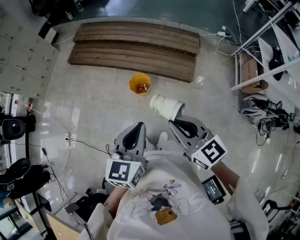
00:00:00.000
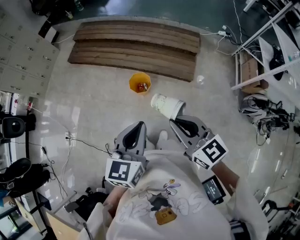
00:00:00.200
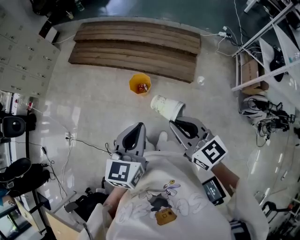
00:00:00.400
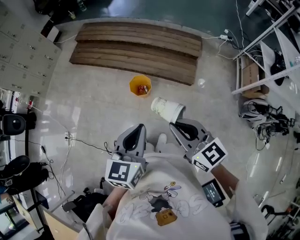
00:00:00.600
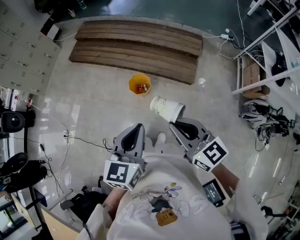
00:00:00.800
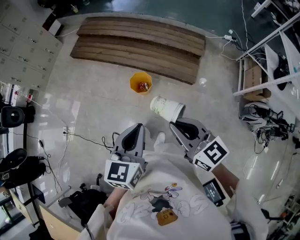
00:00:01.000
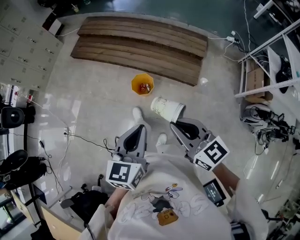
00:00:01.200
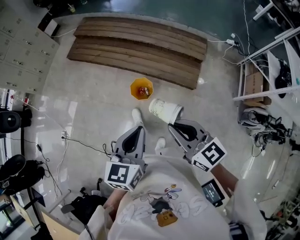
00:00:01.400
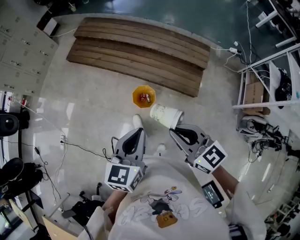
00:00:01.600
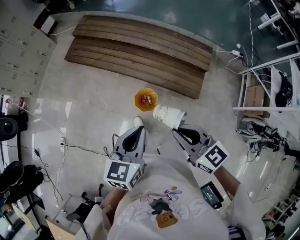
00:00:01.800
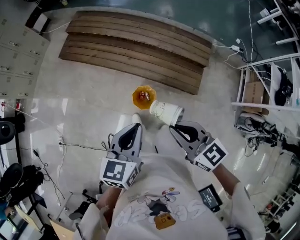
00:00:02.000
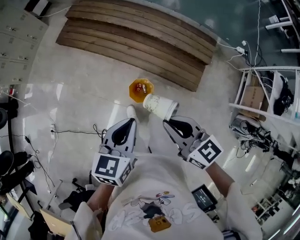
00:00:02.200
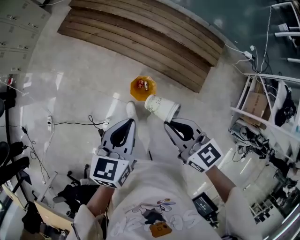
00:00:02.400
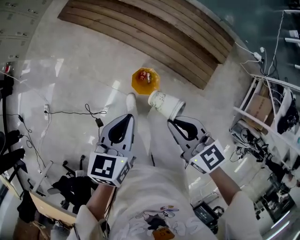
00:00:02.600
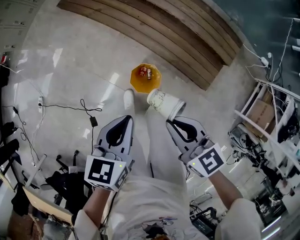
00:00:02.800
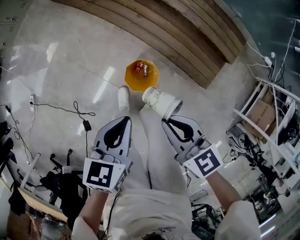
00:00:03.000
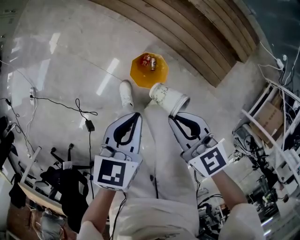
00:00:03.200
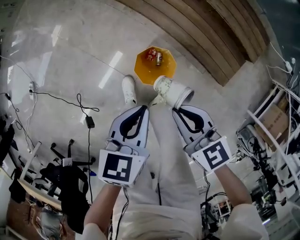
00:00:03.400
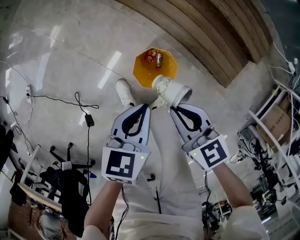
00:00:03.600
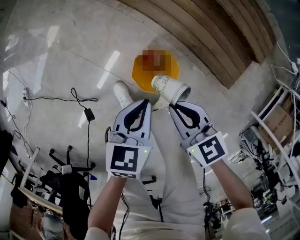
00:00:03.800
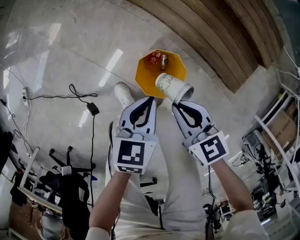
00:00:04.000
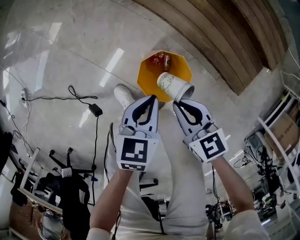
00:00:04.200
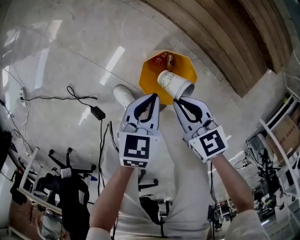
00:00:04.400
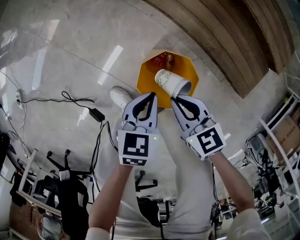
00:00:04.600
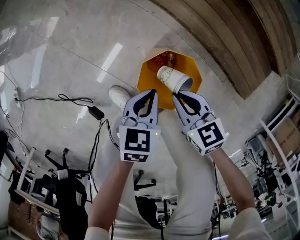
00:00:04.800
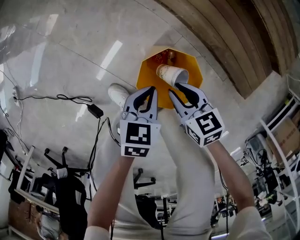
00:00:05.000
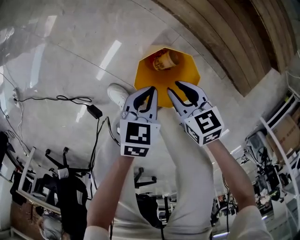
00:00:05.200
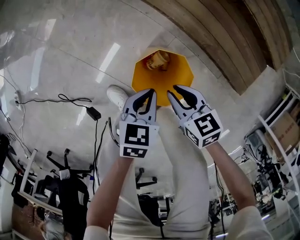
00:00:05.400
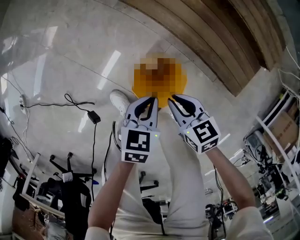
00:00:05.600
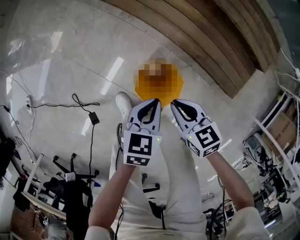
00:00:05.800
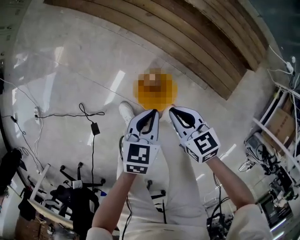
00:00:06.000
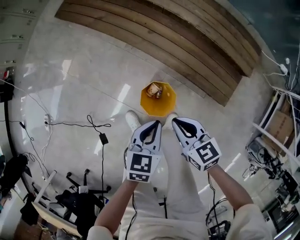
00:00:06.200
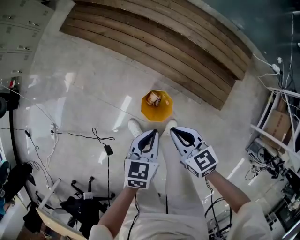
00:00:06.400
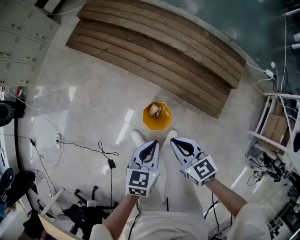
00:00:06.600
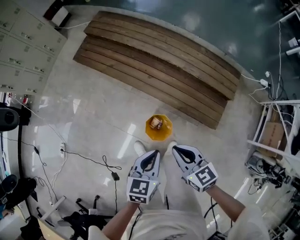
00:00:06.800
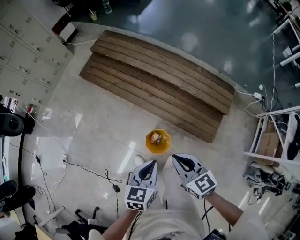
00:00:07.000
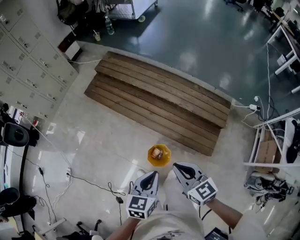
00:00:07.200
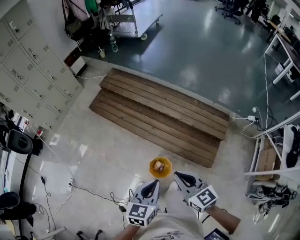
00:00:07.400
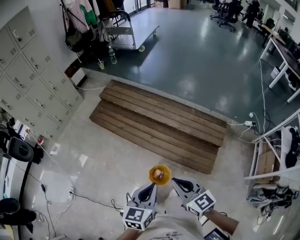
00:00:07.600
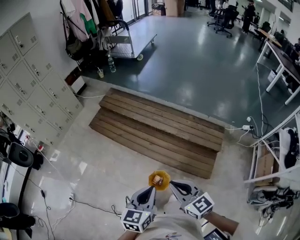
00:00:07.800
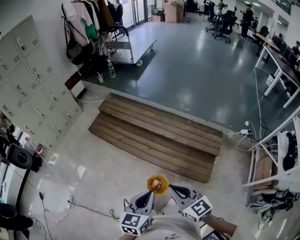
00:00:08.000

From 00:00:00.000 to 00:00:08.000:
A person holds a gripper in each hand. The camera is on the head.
From 00:00:00.000 to 00:00:01.600: The two grippers go some 20 cm forward.
From 00:00:01.600 to 00:00:03.200: Both grippers move downward and forward, approximately 40 cm. The right gripper rotates roughly 20 degrees. Meanwhile the left gripper changes its angle by about 30 degrees.
From 00:00:03.200 to 00:00:04.800: Both grippers move downward, roughly 40 cm.
From 00:00:04.800 to 00:00:06.400: The grippers both shift upward by about 40 cm. The right gripper opens, then closes again.
From 00:00:06.400 to 00:00:08.000: Both grippers move upward, approximately 40 cm. The left gripper swivels roughly 20 degrees; the right gripper rotates approximately 30 degrees.

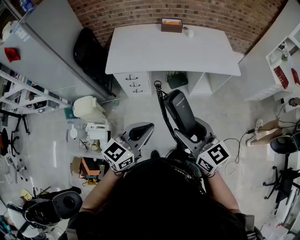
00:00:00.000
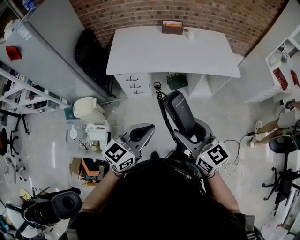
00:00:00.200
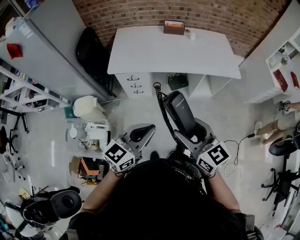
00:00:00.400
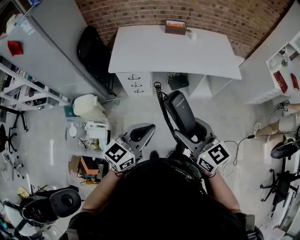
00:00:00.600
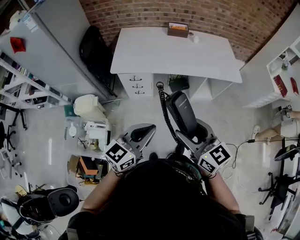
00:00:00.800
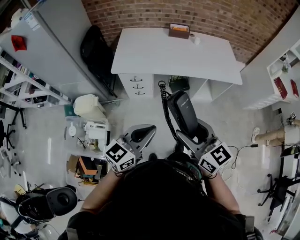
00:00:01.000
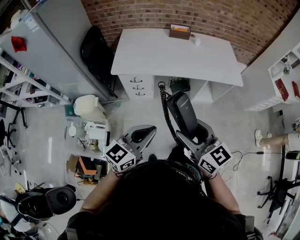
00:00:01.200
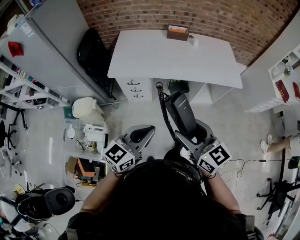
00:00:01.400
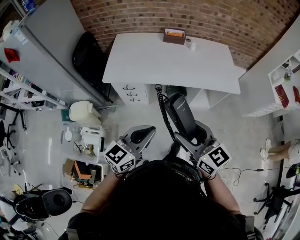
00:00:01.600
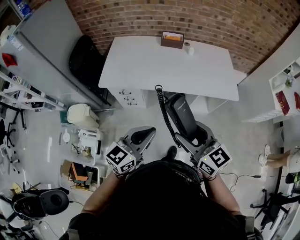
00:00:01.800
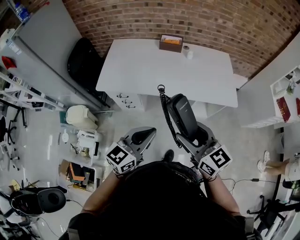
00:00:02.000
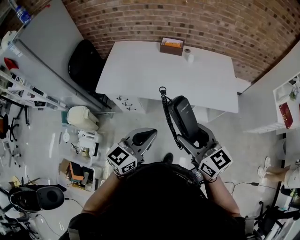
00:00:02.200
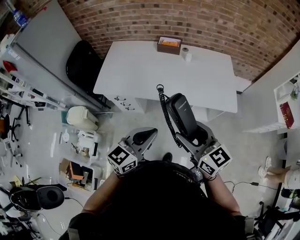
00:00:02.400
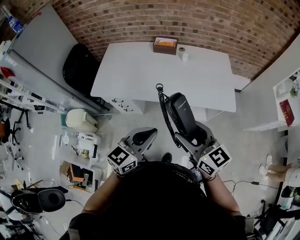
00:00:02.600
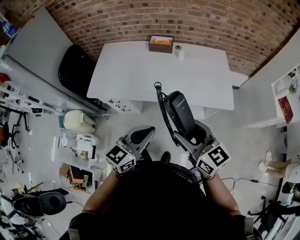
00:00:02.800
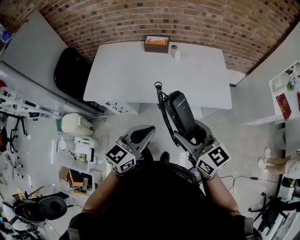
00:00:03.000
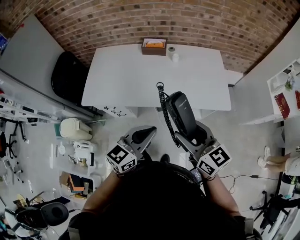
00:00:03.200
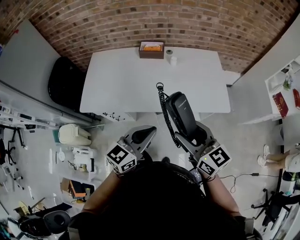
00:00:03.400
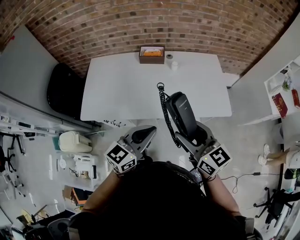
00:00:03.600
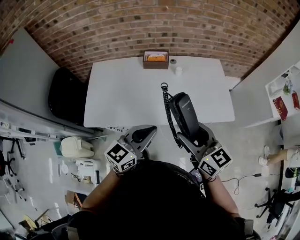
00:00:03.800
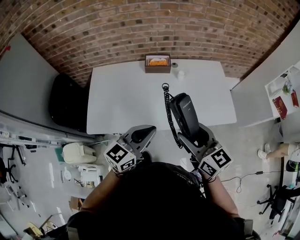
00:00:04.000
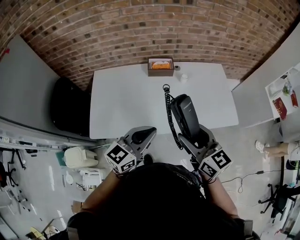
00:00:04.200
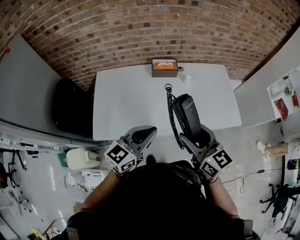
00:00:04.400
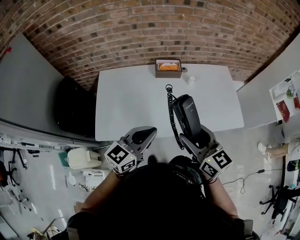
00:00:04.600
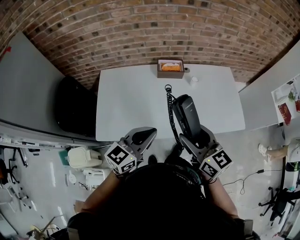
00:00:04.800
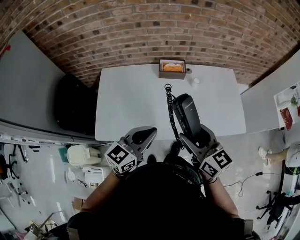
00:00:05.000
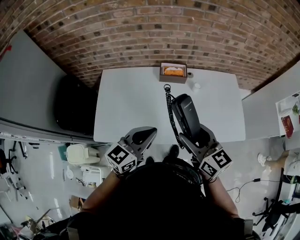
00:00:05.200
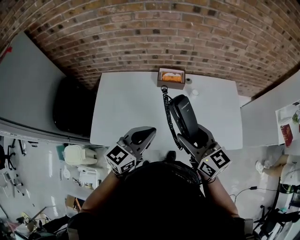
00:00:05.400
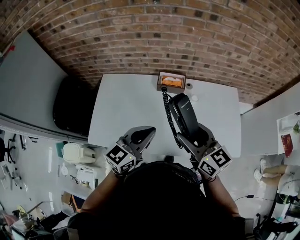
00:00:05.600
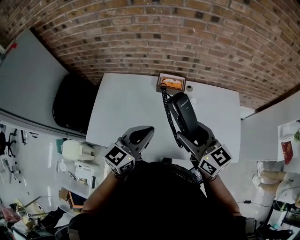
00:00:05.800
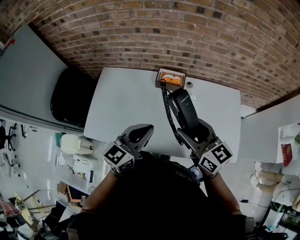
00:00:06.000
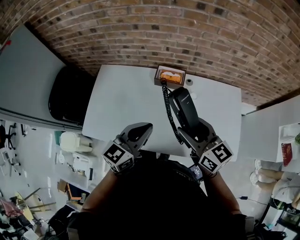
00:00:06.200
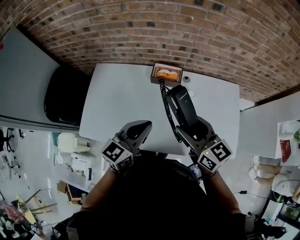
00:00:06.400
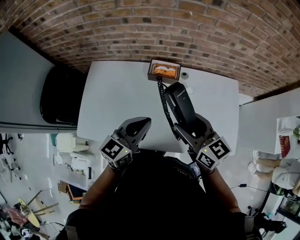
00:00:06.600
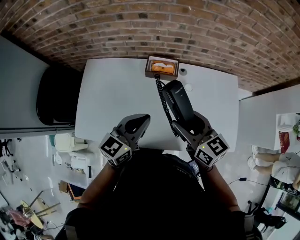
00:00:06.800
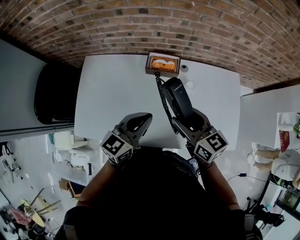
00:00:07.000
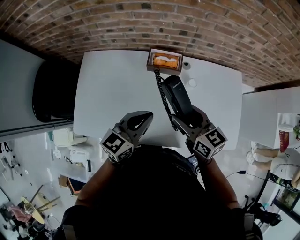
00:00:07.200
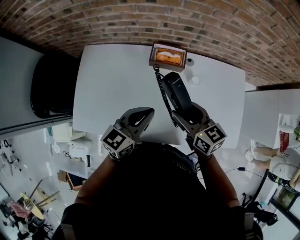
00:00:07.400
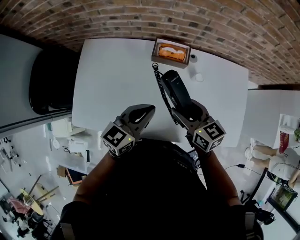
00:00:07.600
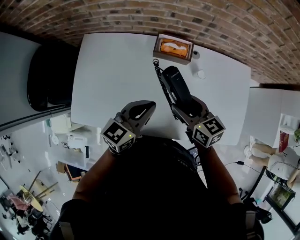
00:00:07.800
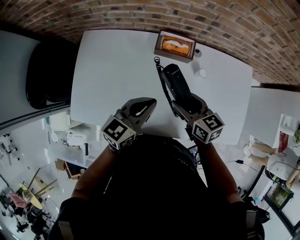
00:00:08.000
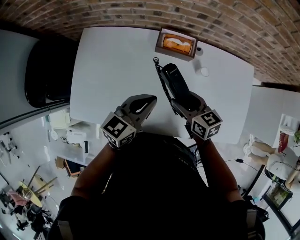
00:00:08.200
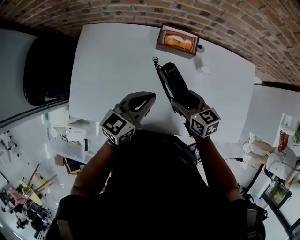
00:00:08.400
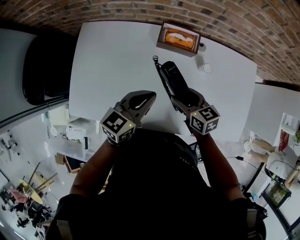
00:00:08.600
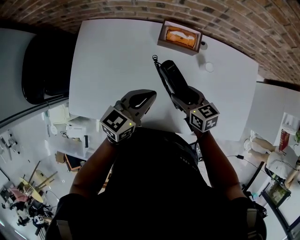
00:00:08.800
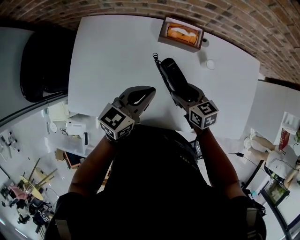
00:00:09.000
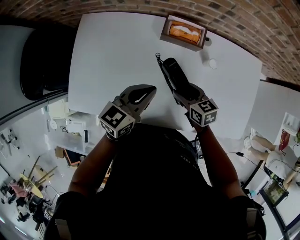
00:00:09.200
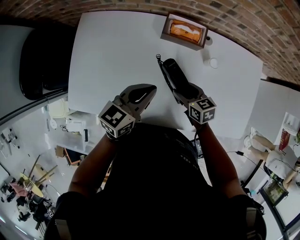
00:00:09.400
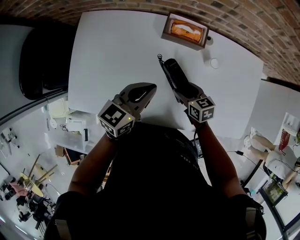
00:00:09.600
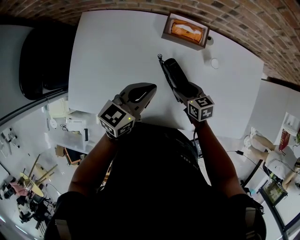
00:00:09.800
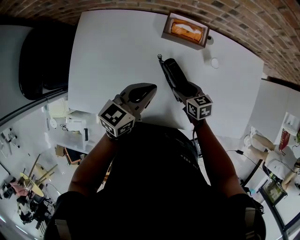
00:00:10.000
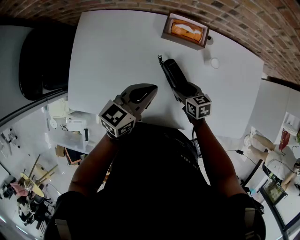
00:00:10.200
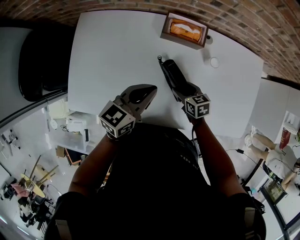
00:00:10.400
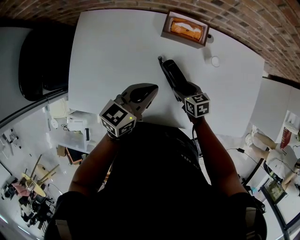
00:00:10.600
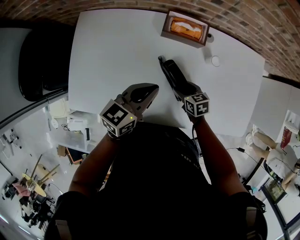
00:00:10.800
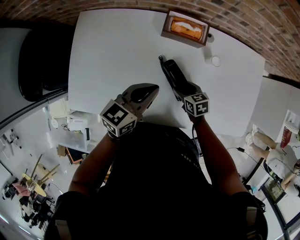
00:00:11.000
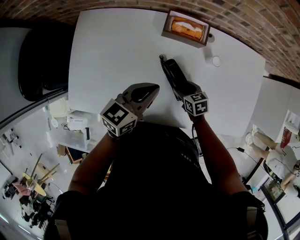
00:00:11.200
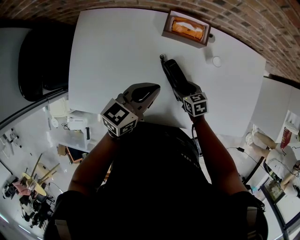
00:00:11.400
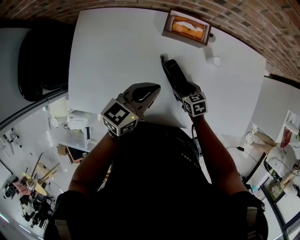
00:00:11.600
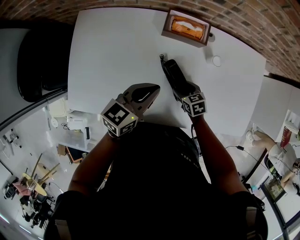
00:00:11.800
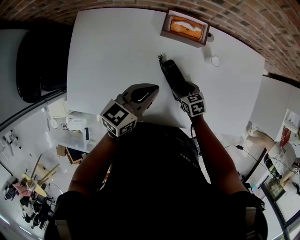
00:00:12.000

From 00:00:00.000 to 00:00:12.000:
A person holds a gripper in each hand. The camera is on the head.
From 00:00:00.000 to 00:00:01.600: Both grippers move forward, about 10 cm.
From 00:00:01.600 to 00:00:03.000: The two grippers go about 25 cm to the right and forward.
From 00:00:03.000 to 00:00:04.400: The left gripper heads forward and to the left, covering about 25 cm, while the right gripper is displaced to the left and forward by approximately 25 cm.
From 00:00:04.400 to 00:00:06.000: The right gripper shifts roughly 20 cm forward. Meanwhile the left gripper heads forward and to the right, covering some 15 cm.
From 00:00:06.000 to 00:00:07.600: The two grippers go some 15 cm downward and forward.
From 00:00:07.600 to 00:00:09.000: The left gripper goes approximately 5 cm downward; the right gripper shifts roughly 15 cm downward.
From 00:00:09.000 to 00:00:10.400: The right gripper is displaced downward by approximately 10 cm.
From 00:00:10.400 to 00:00:12.000: The grippers move only a little.

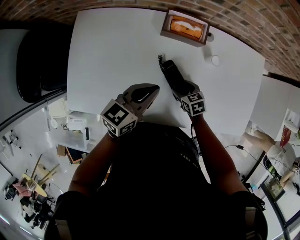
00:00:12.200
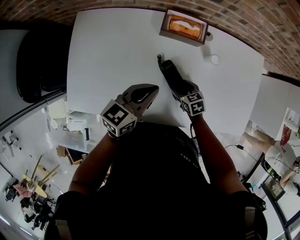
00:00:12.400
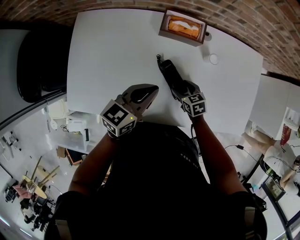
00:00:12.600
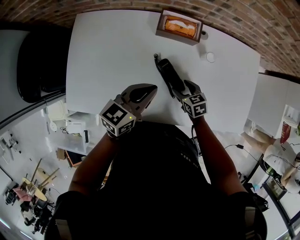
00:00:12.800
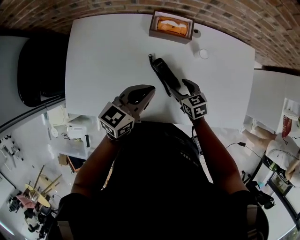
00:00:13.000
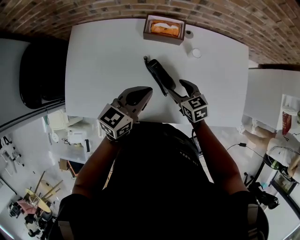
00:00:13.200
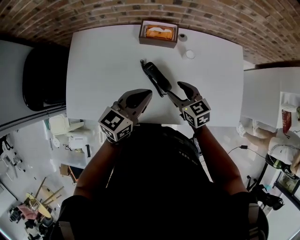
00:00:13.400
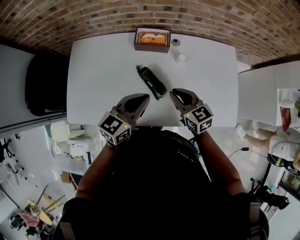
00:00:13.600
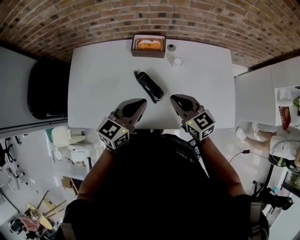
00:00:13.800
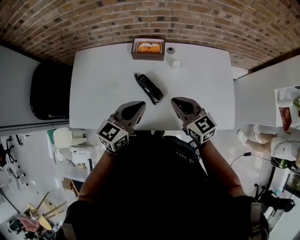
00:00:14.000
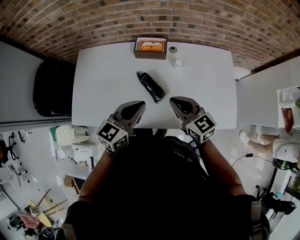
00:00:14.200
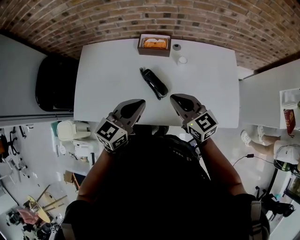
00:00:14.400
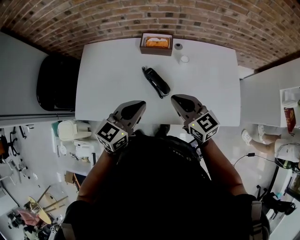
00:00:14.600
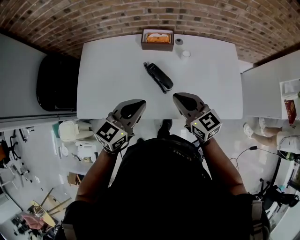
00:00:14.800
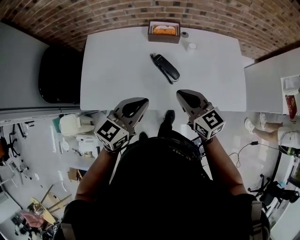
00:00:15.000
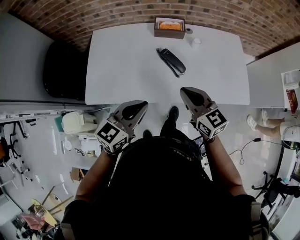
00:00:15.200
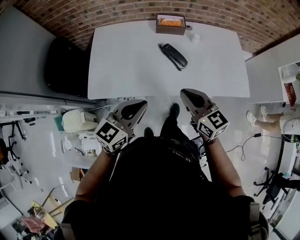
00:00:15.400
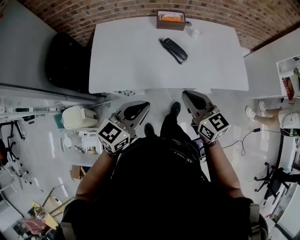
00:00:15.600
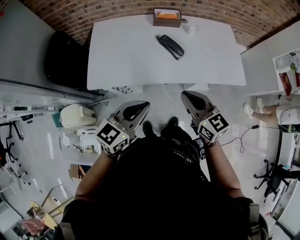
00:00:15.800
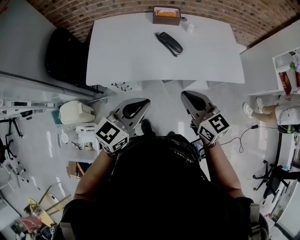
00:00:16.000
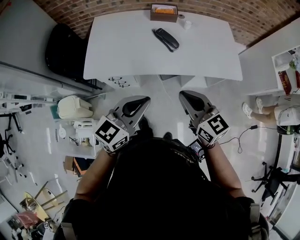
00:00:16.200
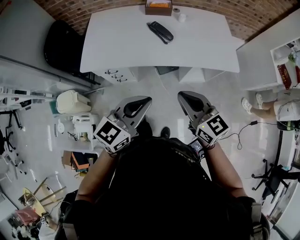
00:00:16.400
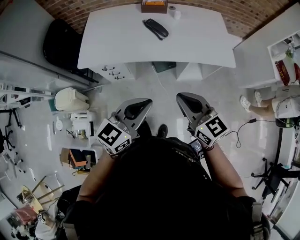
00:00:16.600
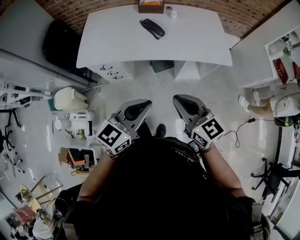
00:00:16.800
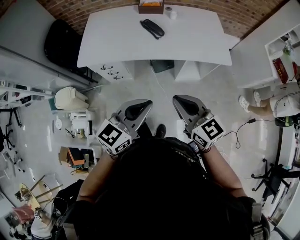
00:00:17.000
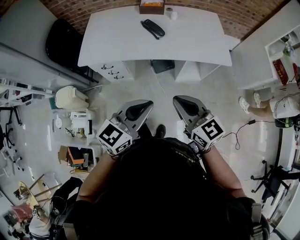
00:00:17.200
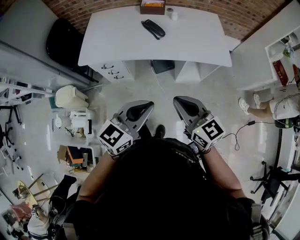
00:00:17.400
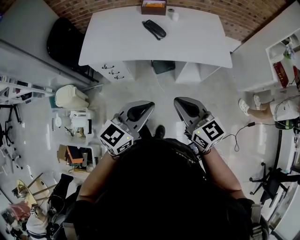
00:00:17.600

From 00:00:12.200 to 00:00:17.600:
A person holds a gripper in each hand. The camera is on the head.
From 00:00:12.200 to 00:00:13.600: The right gripper goes some 25 cm upward, rotates about 30 degrees, and closes up. The left gripper goes some 15 cm upward, backward and to the right.
From 00:00:13.600 to 00:00:15.000: The right gripper travels backward, upward and to the left by some 15 cm. The left gripper moves backward and to the left, some 15 cm.
From 00:00:15.000 to 00:00:16.200: Both grippers travel together backward, roughly 25 cm.
From 00:00:16.200 to 00:00:17.600: Both grippers move backward and to the right, approximately 20 cm.
